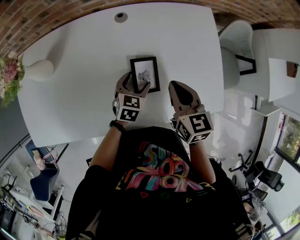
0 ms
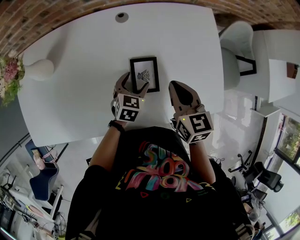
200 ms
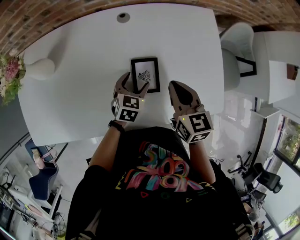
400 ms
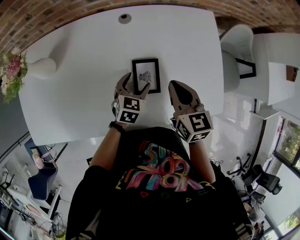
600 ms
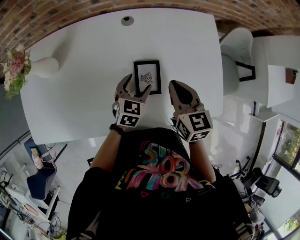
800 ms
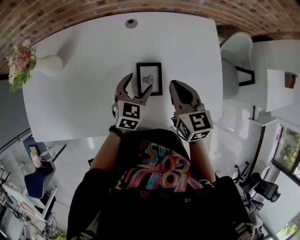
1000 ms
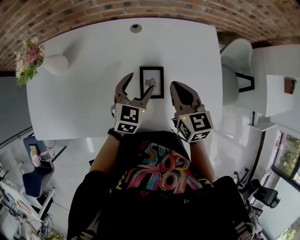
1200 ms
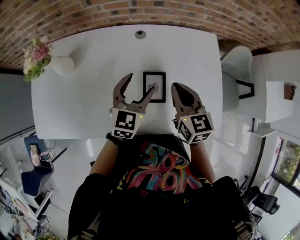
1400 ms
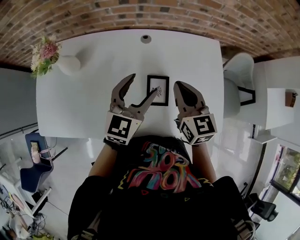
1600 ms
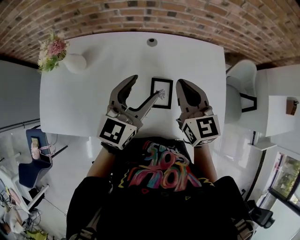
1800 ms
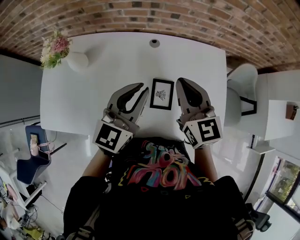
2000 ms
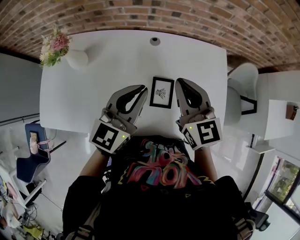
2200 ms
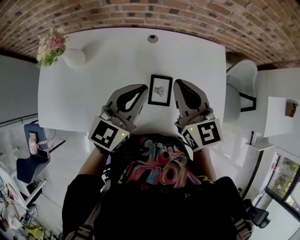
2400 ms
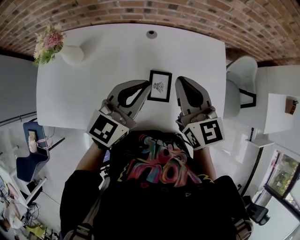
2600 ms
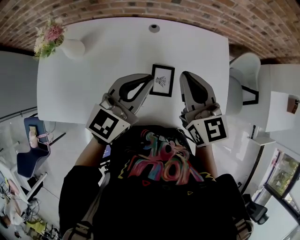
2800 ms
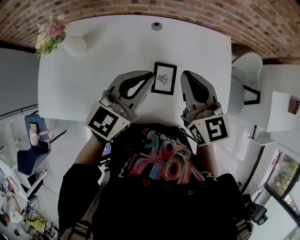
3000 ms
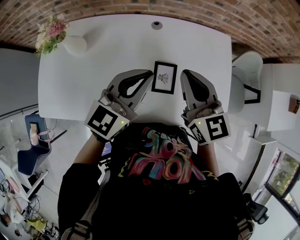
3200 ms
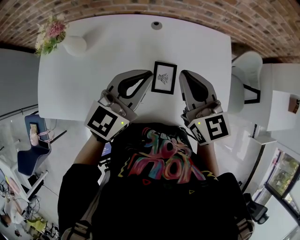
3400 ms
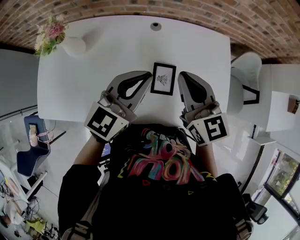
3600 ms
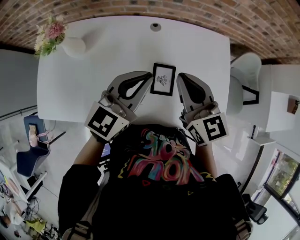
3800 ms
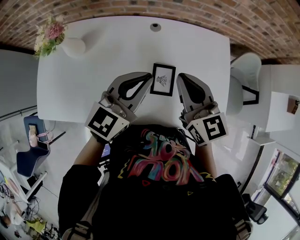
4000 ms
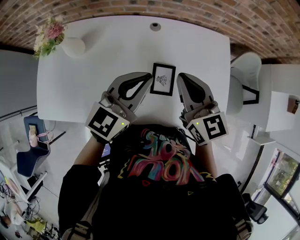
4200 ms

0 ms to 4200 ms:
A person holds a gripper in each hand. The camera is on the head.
0 ms to 1400 ms: The left gripper moves upward, about 20 cm, and turns by approximately 20 degrees, while the right gripper goes approximately 5 cm upward.
1400 ms to 2800 ms: The two grippers go roughly 10 cm upward. The left gripper rotates roughly 20 degrees, and closes.
2800 ms to 4200 ms: The grippers move only a little.

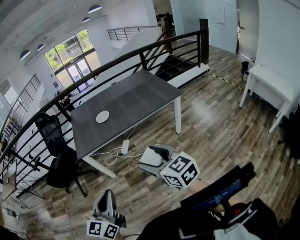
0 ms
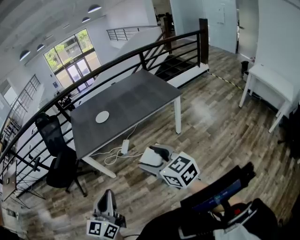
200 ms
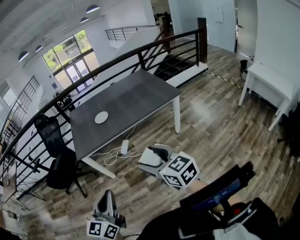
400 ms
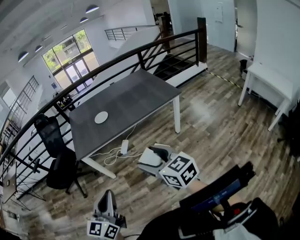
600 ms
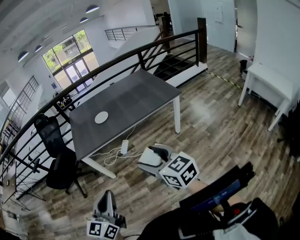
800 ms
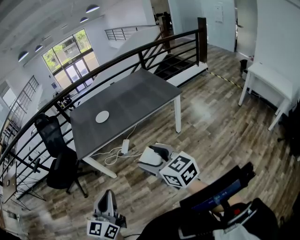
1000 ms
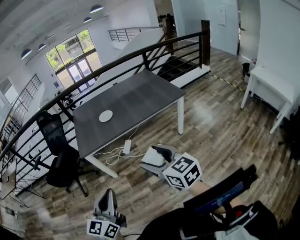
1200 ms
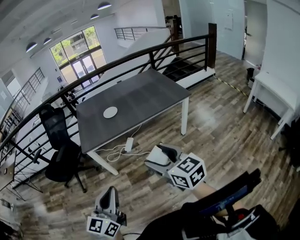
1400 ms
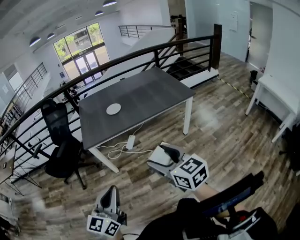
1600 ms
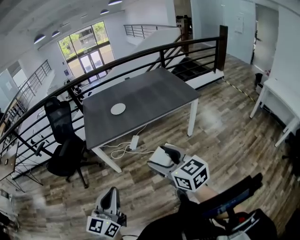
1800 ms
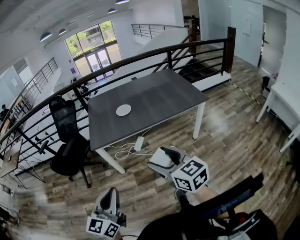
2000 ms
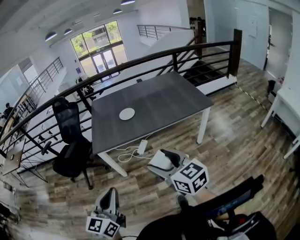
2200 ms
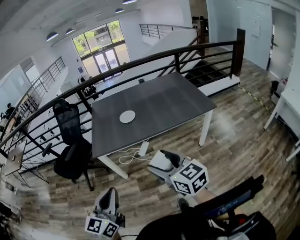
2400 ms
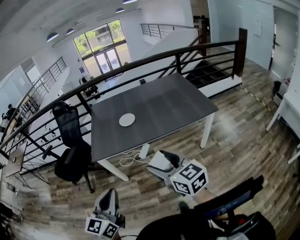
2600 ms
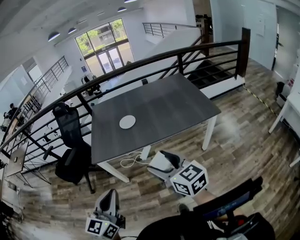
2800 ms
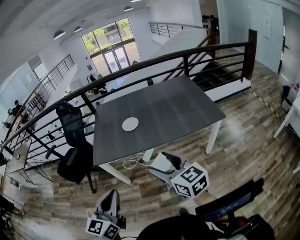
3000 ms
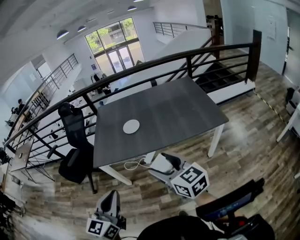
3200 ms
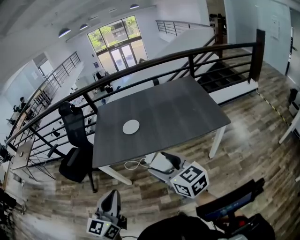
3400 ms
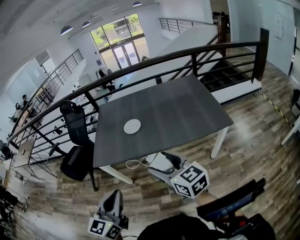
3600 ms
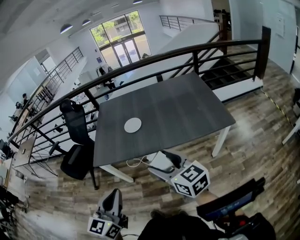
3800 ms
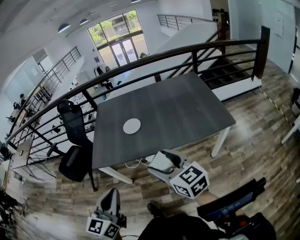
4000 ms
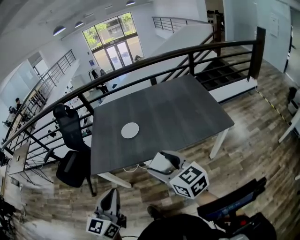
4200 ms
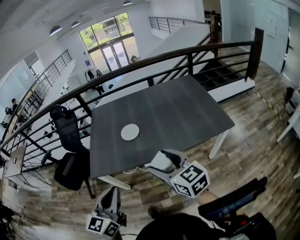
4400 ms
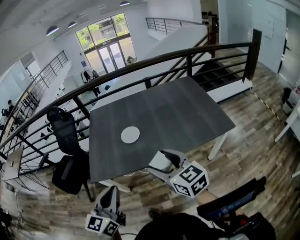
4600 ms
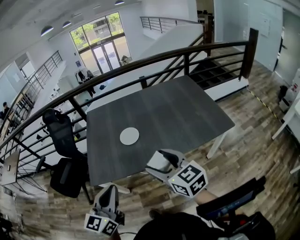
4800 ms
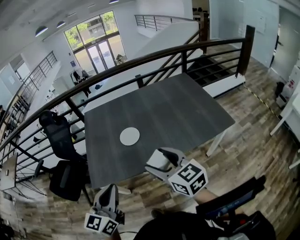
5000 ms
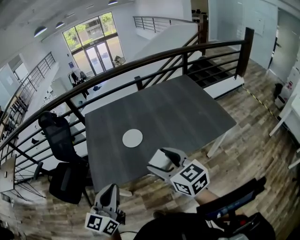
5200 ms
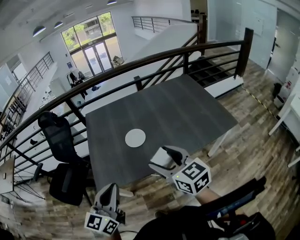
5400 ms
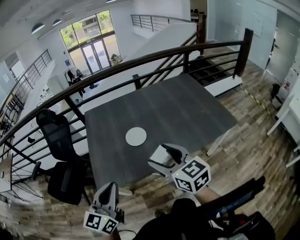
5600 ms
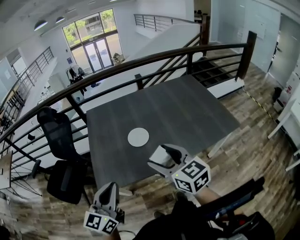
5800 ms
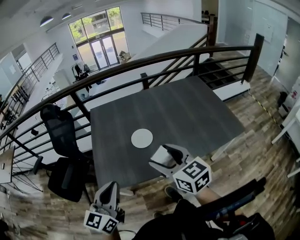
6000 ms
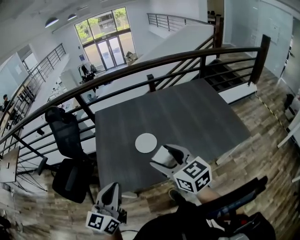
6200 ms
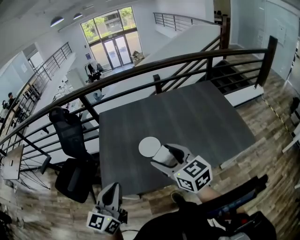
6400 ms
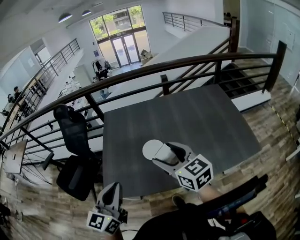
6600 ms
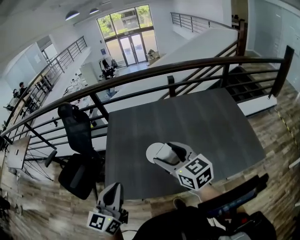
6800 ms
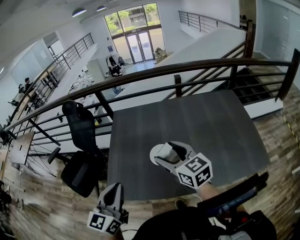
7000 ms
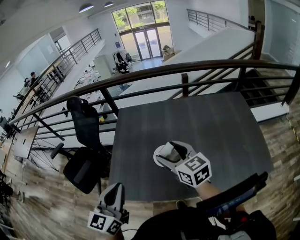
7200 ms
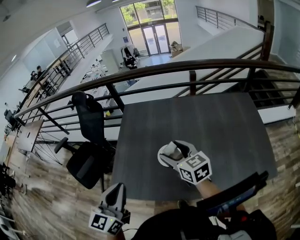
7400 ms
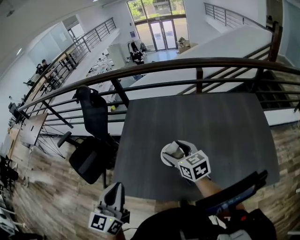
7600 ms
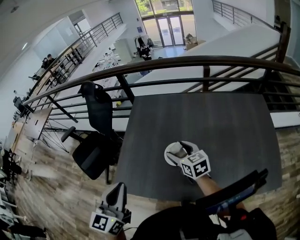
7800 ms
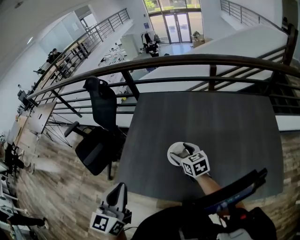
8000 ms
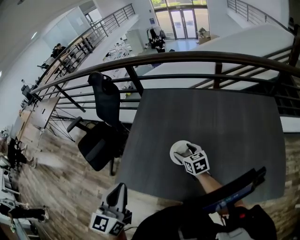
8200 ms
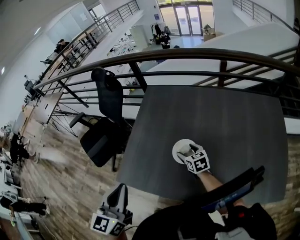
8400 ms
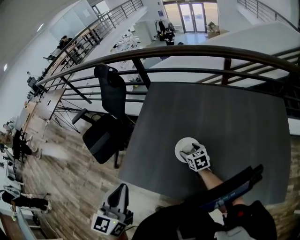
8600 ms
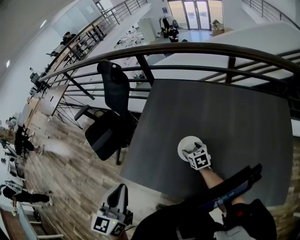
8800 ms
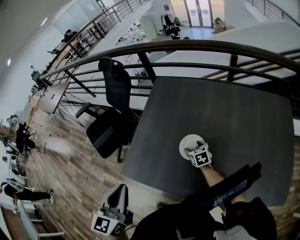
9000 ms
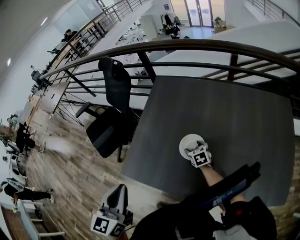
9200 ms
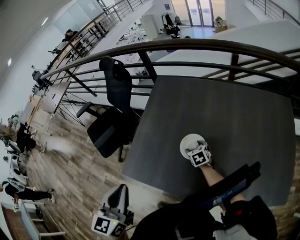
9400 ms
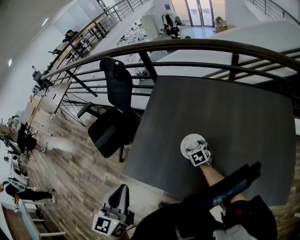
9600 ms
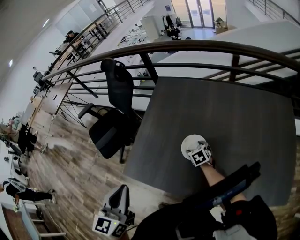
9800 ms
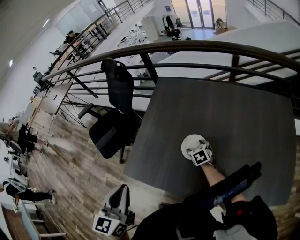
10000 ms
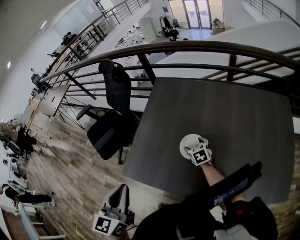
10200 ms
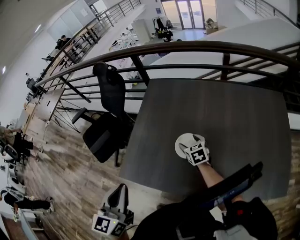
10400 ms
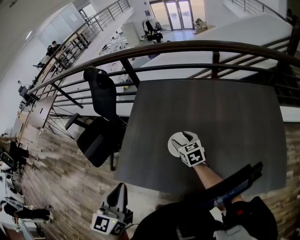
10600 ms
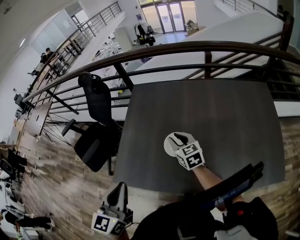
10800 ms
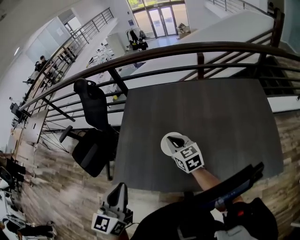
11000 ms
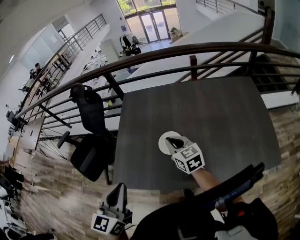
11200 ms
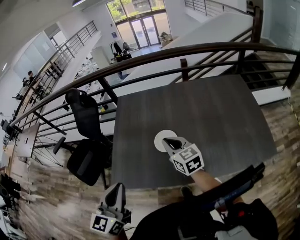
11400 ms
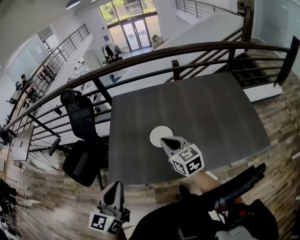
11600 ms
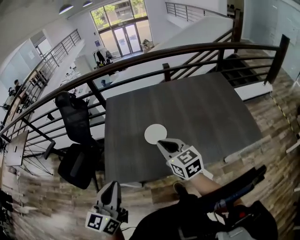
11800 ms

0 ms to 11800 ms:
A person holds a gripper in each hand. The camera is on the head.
0 ms to 1400 ms: The right gripper ends up approximately 5 cm from where it was, while the left gripper travels to the left by about 5 cm.
1400 ms to 3000 ms: The left gripper is displaced forward and to the right by some 20 cm; the right gripper goes approximately 25 cm forward.
3000 ms to 4400 ms: Both grippers travel together forward, some 15 cm.
4400 ms to 6000 ms: The two grippers go about 20 cm forward and to the left.
6000 ms to 7400 ms: The right gripper is displaced forward by roughly 25 cm. Meanwhile the left gripper heads forward, covering about 10 cm, and rotates about 20 degrees.
7400 ms to 8800 ms: The right gripper moves downward, some 25 cm, and swivels about 30 degrees.
8800 ms to 10400 ms: There are only small adjustments of the grippers.
10400 ms to 11800 ms: The left gripper is displaced backward by approximately 10 cm, and rotates about 30 degrees. The right gripper heads upward and backward, covering some 30 cm, swivels some 30 degrees, and closes.

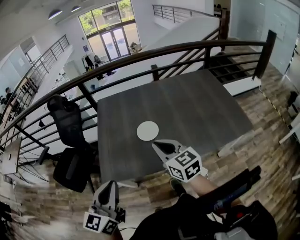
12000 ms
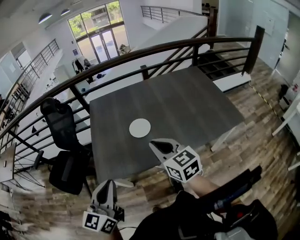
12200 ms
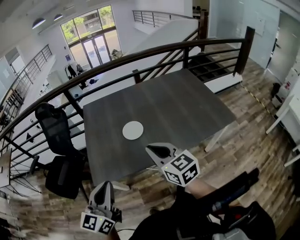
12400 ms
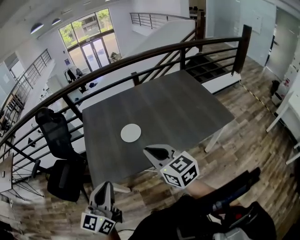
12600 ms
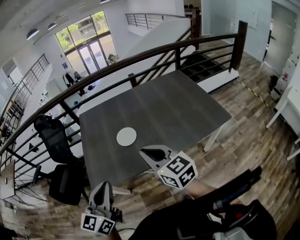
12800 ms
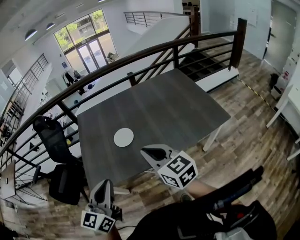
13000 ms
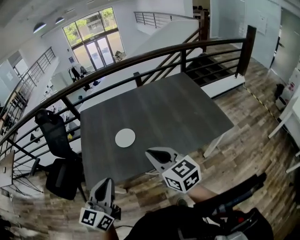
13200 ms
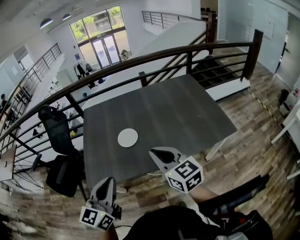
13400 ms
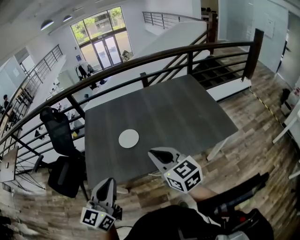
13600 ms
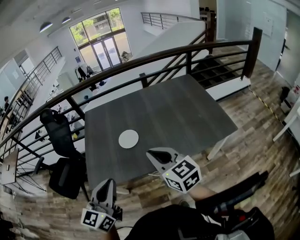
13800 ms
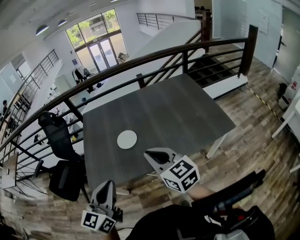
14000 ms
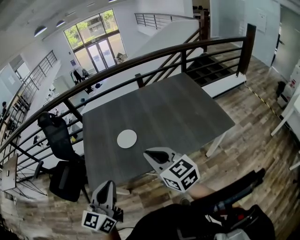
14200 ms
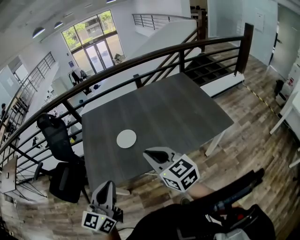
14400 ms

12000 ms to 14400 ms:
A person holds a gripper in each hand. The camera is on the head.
12000 ms to 13200 ms: The right gripper heads to the right and backward, covering some 15 cm, while the left gripper moves to the right, roughly 10 cm.
13200 ms to 14400 ms: The grippers move only a little.

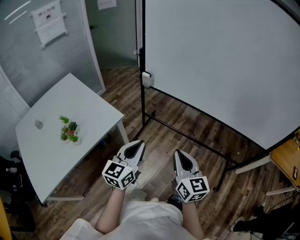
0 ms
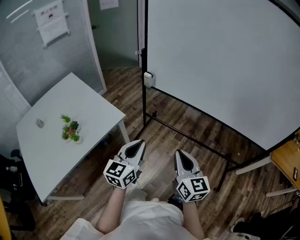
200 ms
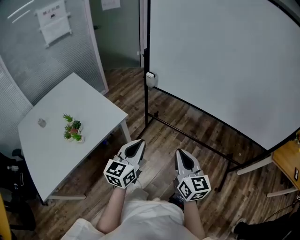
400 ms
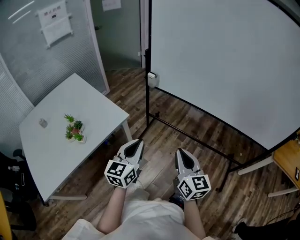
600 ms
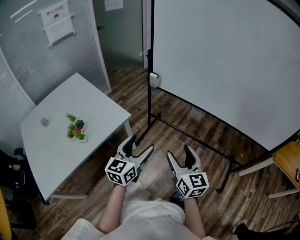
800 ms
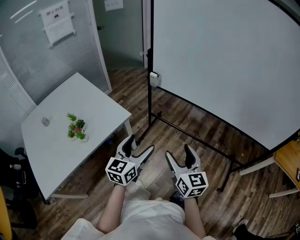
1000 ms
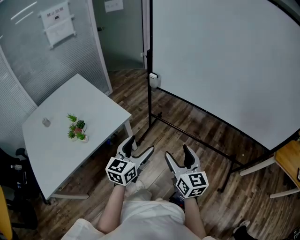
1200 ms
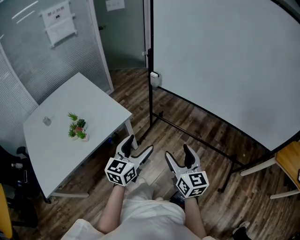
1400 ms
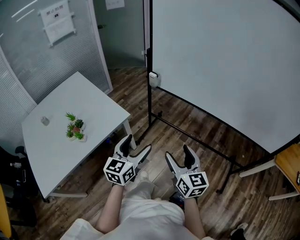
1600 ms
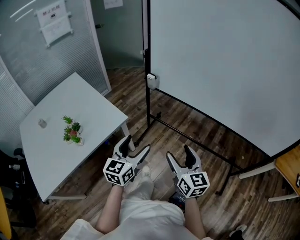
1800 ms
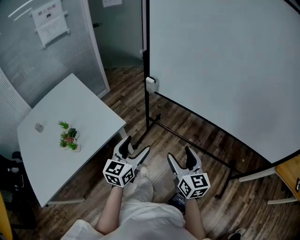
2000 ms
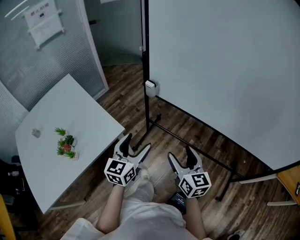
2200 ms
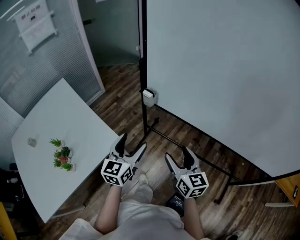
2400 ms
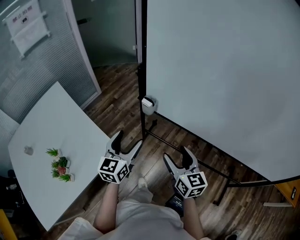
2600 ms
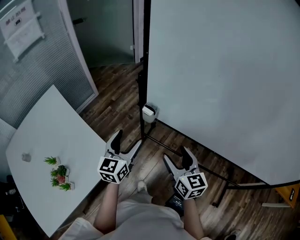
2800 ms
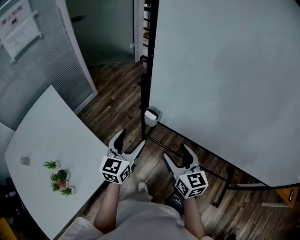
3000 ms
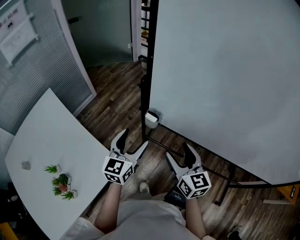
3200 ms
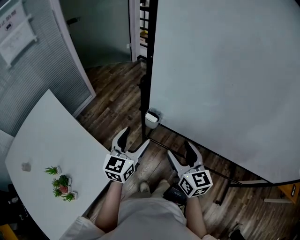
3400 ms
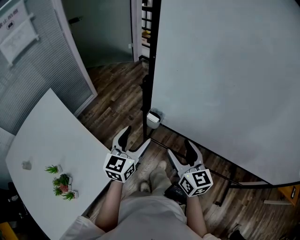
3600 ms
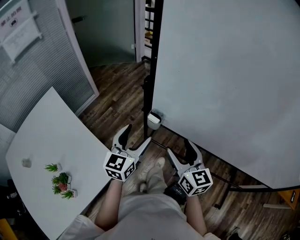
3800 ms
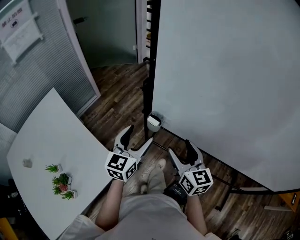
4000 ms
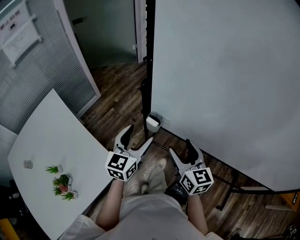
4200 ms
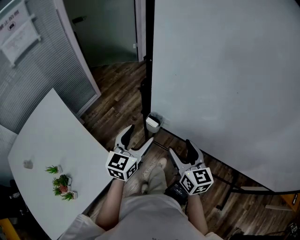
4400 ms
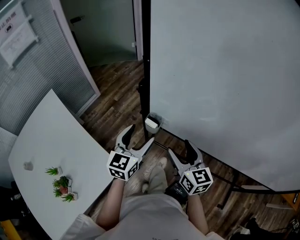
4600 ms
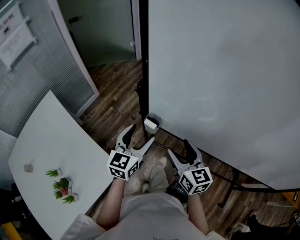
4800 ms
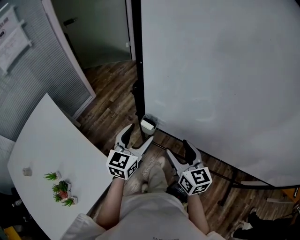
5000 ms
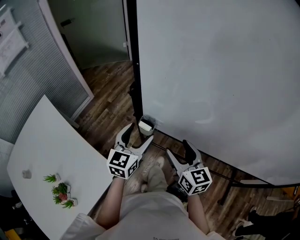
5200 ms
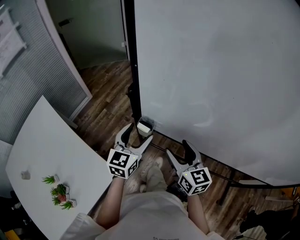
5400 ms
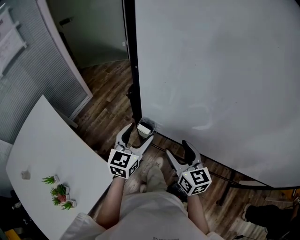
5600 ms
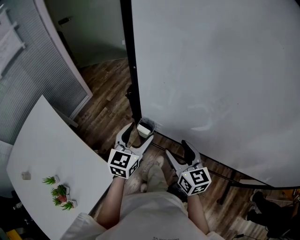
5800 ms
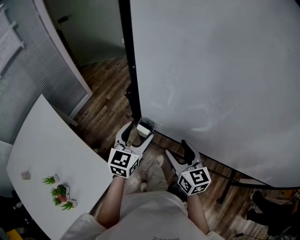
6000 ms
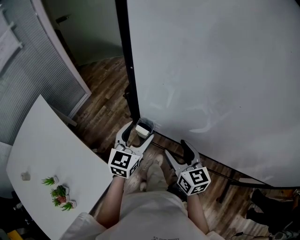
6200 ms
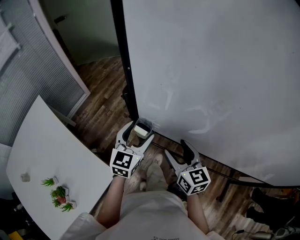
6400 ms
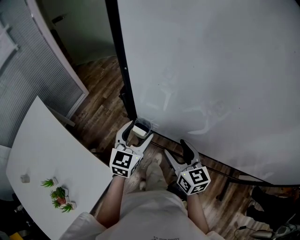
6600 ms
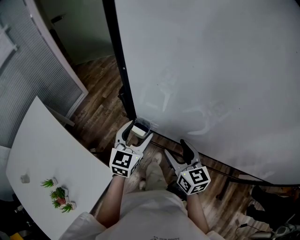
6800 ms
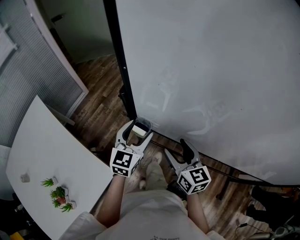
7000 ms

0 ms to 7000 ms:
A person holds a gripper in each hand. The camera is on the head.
0 ms to 1400 ms: The right gripper opens its fingers. The left gripper opens its fingers.
1400 ms to 2800 ms: The grippers both shift forward by roughly 40 cm.
2800 ms to 4200 ms: Both grippers travel together forward, about 10 cm.
4200 ms to 5600 ms: The left gripper is displaced forward by approximately 5 cm.
5600 ms to 7000 ms: There are only small adjustments of the grippers.
